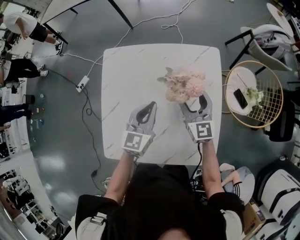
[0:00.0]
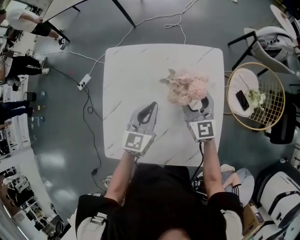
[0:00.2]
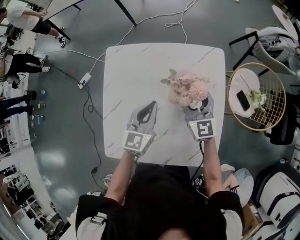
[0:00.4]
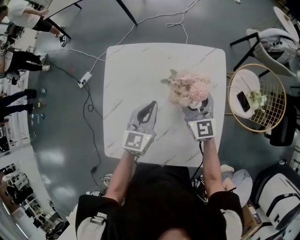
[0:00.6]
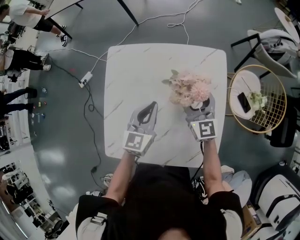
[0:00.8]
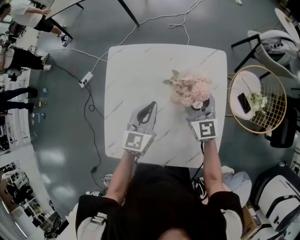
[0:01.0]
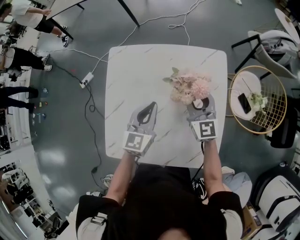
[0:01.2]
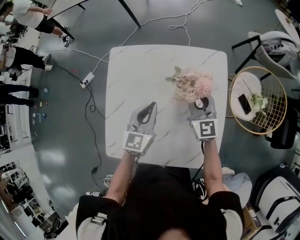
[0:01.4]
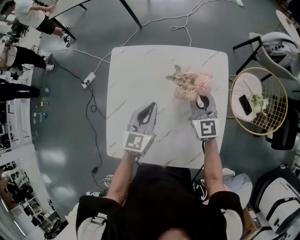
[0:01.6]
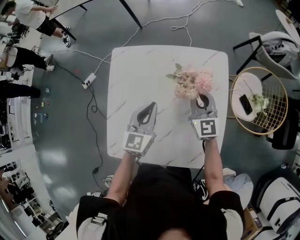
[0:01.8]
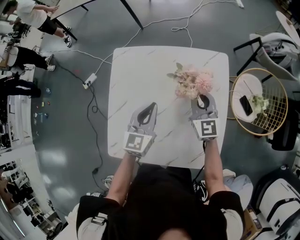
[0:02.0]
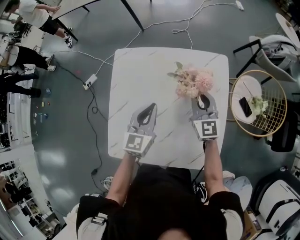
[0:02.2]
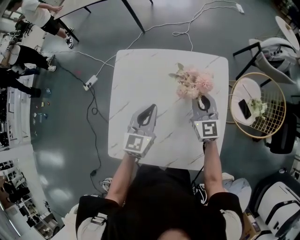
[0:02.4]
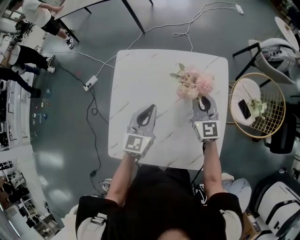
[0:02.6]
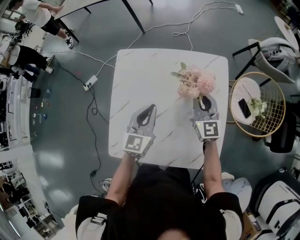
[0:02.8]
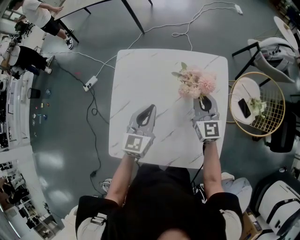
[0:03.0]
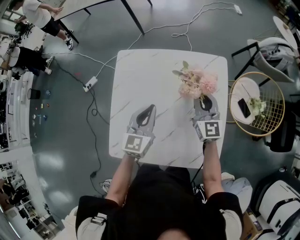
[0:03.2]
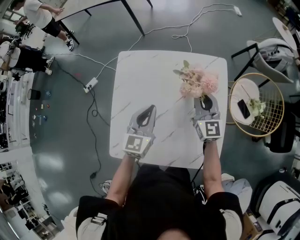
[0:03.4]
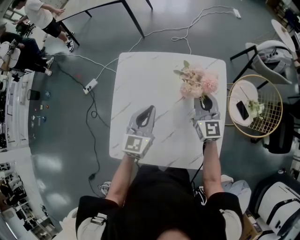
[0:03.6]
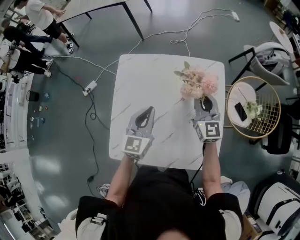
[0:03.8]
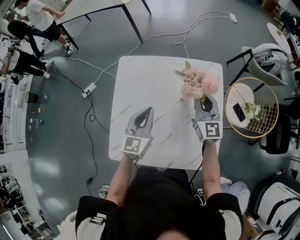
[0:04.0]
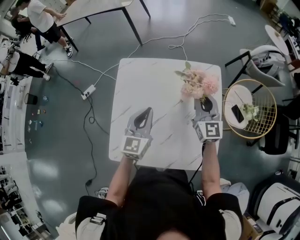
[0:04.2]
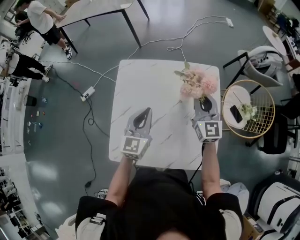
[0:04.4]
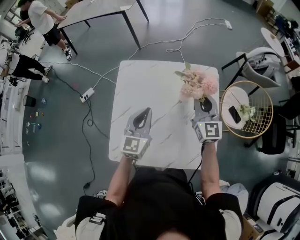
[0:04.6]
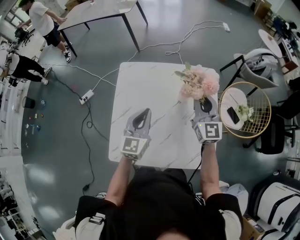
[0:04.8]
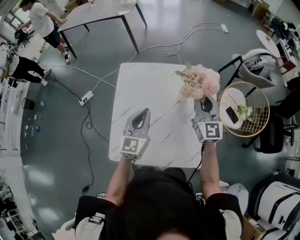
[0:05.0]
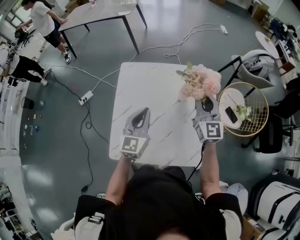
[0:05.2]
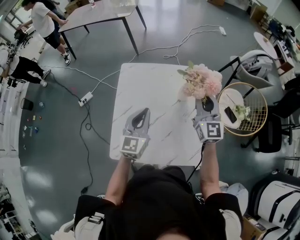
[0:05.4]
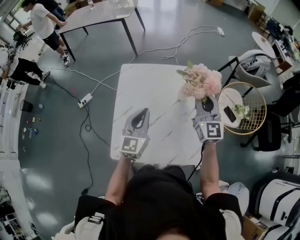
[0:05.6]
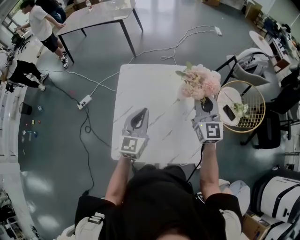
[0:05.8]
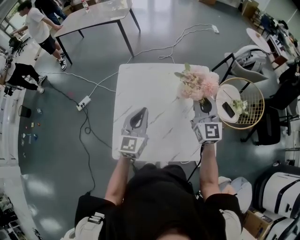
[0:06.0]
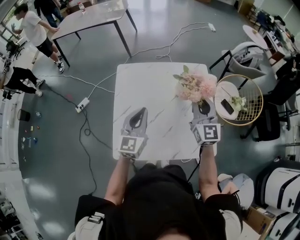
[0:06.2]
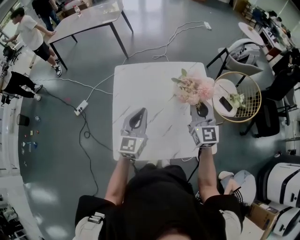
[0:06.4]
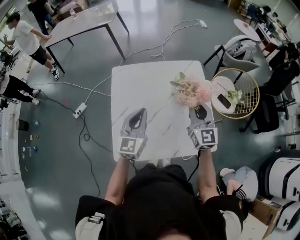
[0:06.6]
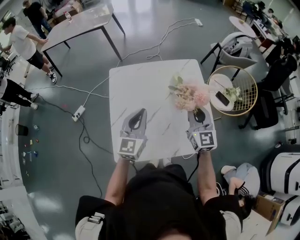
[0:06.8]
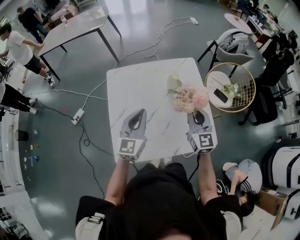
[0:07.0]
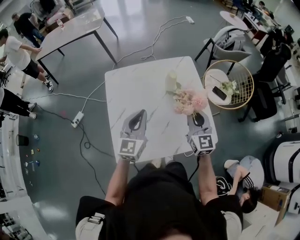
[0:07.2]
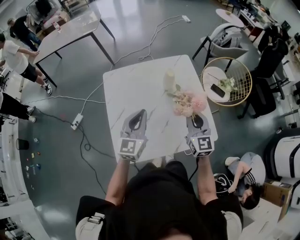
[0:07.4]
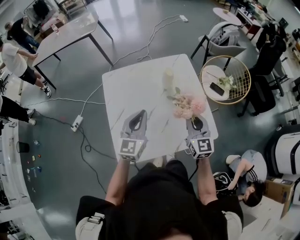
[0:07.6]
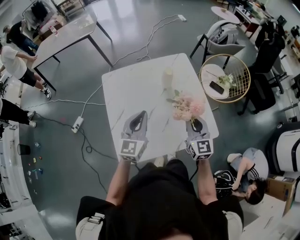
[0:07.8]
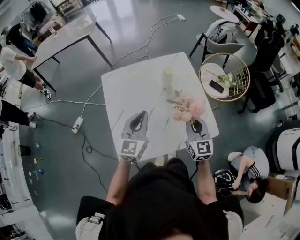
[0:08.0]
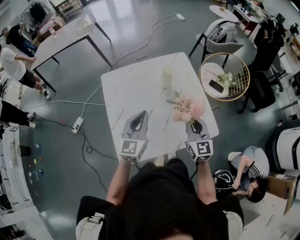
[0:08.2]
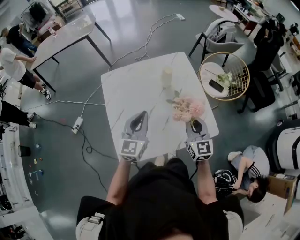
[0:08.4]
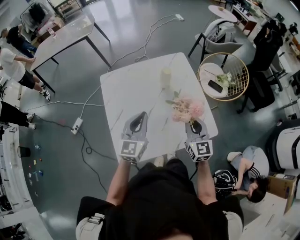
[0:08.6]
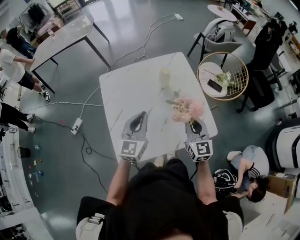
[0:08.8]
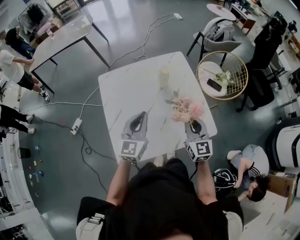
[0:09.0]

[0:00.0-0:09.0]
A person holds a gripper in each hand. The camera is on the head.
0:00.0 to 0:01.6: The right gripper closes up.
0:01.6 to 0:03.0: There are only small adjustments of the grippers.
0:03.0 to 0:04.4: The left gripper shifts by approximately 5 cm. Meanwhile the right gripper moves upward, roughly 10 cm.
0:04.4 to 0:06.0: The right gripper shifts some 10 cm backward and upward, while the left gripper moves backward, about 5 cm.
0:06.0 to 0:07.6: The right gripper is displaced backward and downward by about 15 cm.
0:07.6 to 0:09.0: The grippers move only a little.

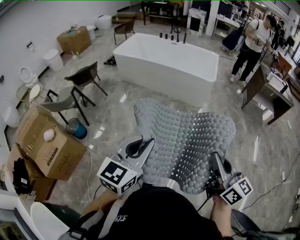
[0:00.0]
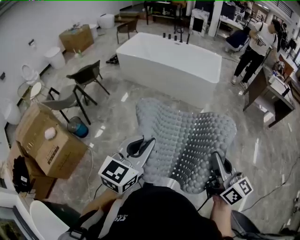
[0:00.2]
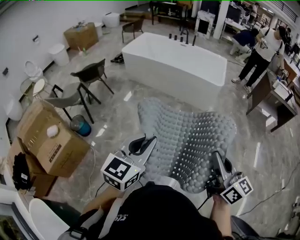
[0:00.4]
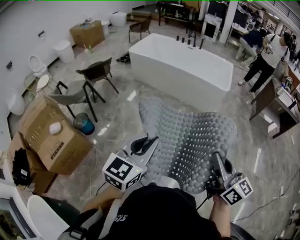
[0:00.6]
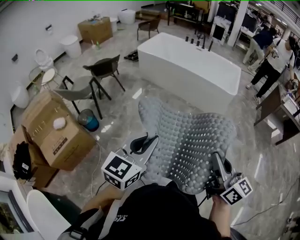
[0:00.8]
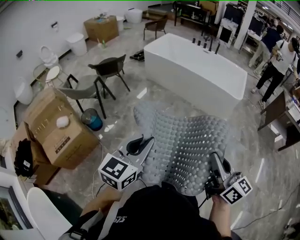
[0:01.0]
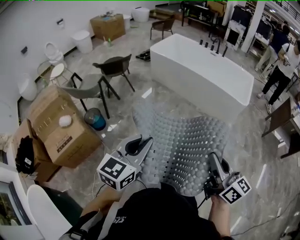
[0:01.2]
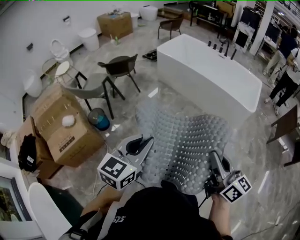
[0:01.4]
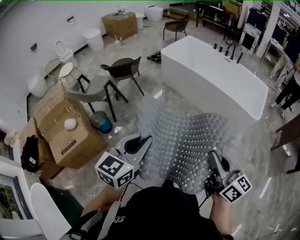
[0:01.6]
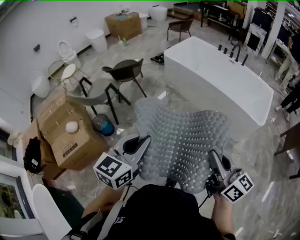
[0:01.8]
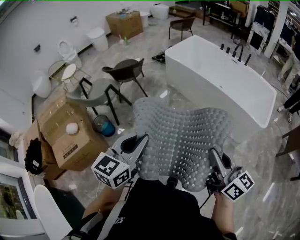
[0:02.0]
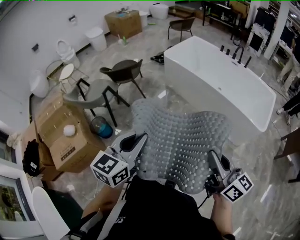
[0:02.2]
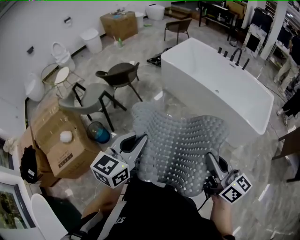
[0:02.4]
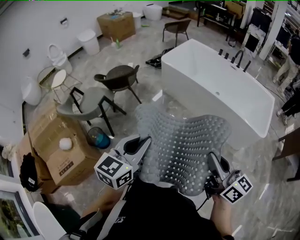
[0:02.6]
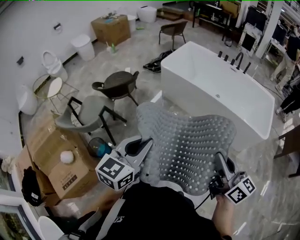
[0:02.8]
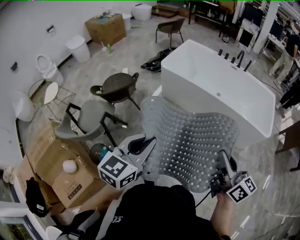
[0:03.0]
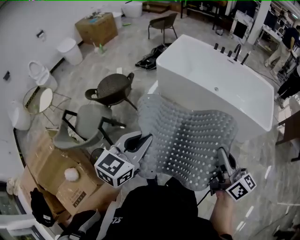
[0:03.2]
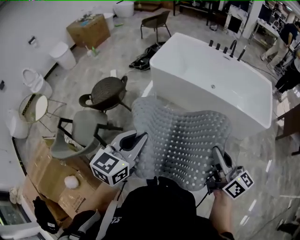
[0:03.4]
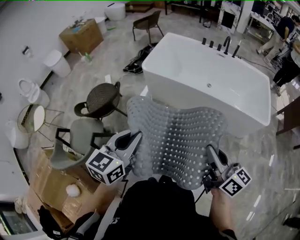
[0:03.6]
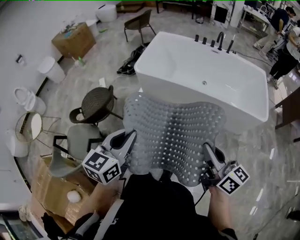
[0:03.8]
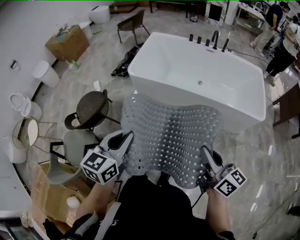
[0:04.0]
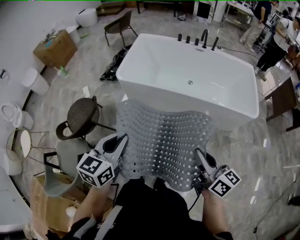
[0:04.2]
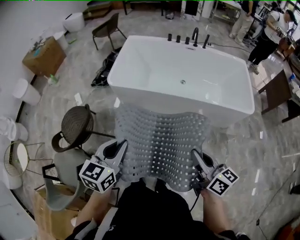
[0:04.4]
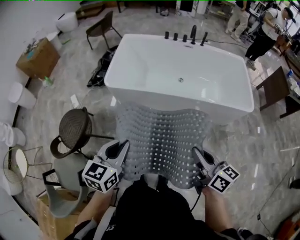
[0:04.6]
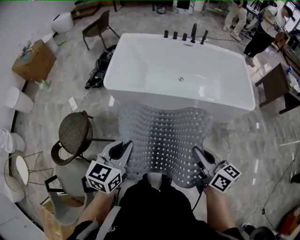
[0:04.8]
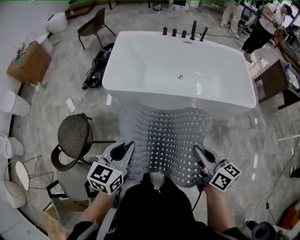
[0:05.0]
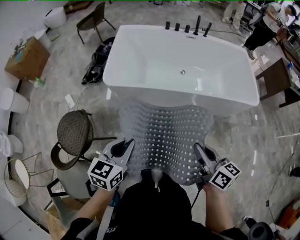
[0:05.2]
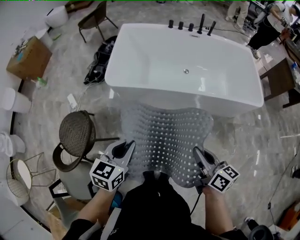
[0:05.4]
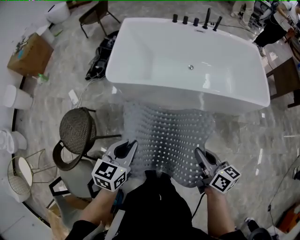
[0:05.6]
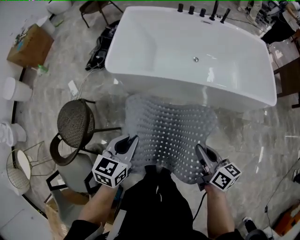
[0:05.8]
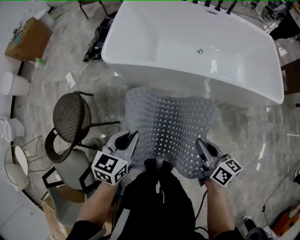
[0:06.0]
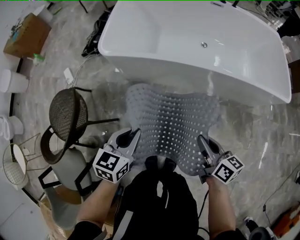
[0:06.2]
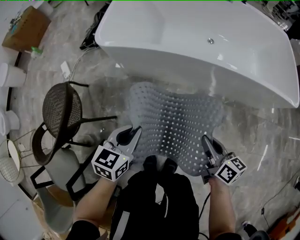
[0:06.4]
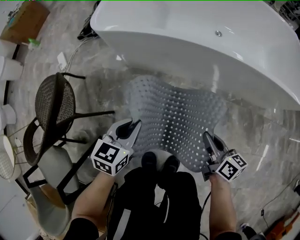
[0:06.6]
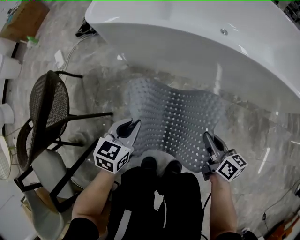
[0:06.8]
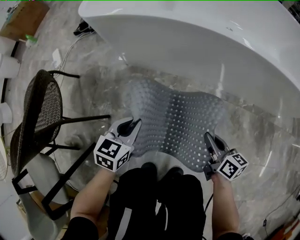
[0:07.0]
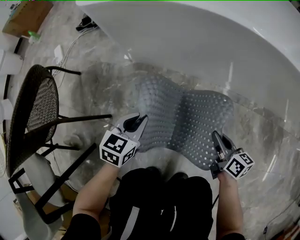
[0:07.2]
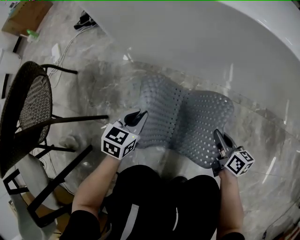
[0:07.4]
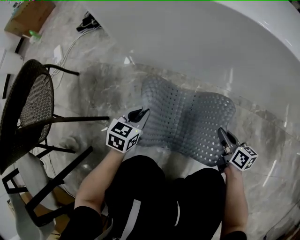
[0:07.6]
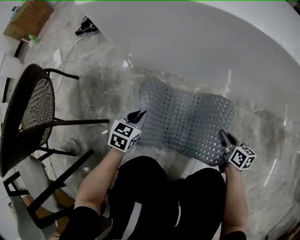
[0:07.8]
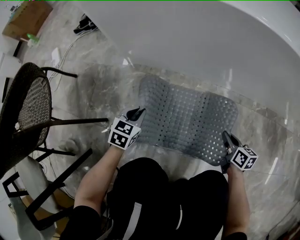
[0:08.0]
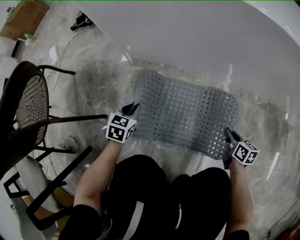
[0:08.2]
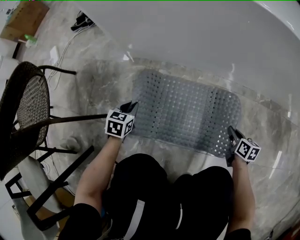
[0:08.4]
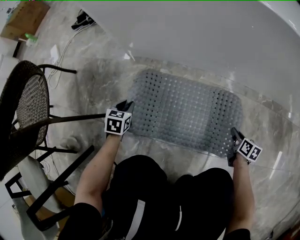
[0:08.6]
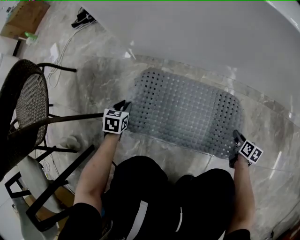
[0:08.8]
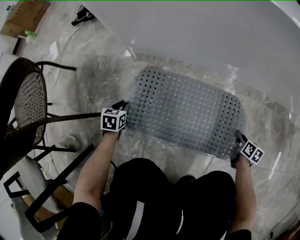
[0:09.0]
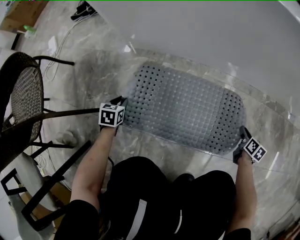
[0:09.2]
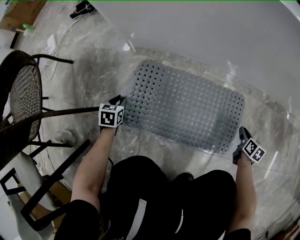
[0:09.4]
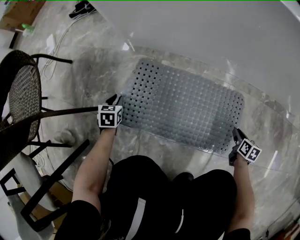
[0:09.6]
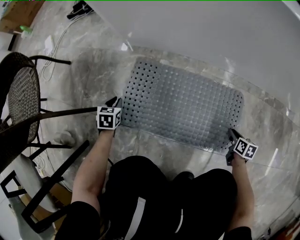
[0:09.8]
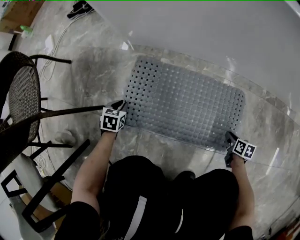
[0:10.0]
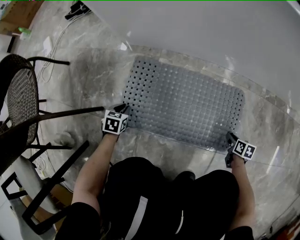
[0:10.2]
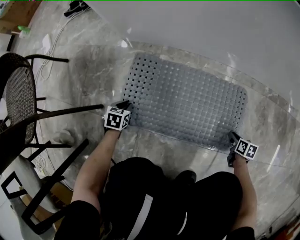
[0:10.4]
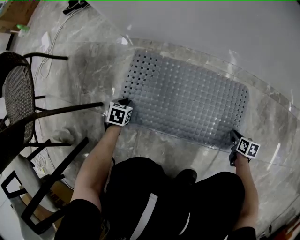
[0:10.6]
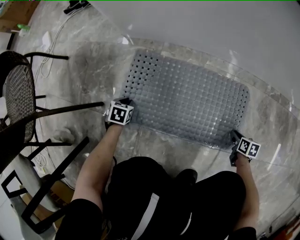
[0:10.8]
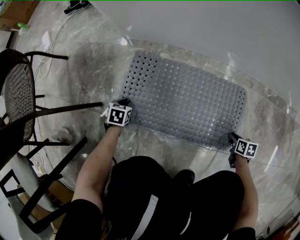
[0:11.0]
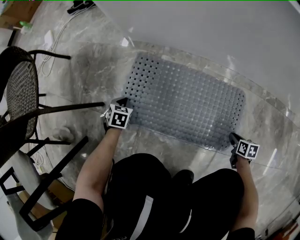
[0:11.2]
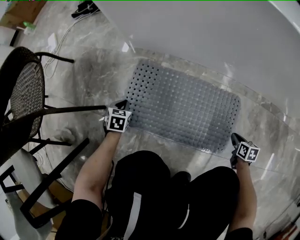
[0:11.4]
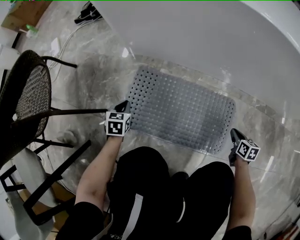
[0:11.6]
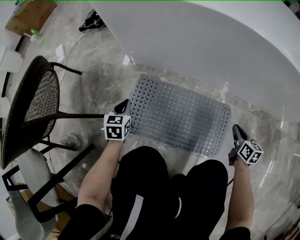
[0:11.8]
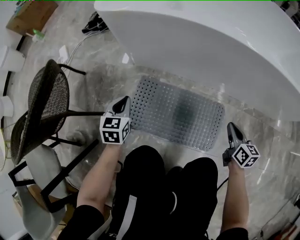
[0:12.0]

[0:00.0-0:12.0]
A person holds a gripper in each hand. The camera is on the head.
0:00.0 to 0:01.6: The grippers both shift forward and to the left by roughly 30 cm. The right gripper swivels about 20 degrees. The left gripper turns by roughly 20 degrees.
0:01.6 to 0:03.0: The two grippers go about 35 cm forward and to the left.
0:03.0 to 0:04.4: The two grippers go about 25 cm forward.
0:04.4 to 0:06.0: The grippers both shift downward and forward by approximately 25 cm.
0:06.0 to 0:07.6: The grippers both shift downward by roughly 50 cm.
0:07.6 to 0:09.0: The left gripper moves downward and to the left, some 20 cm, and changes its angle by roughly 30 degrees, while the right gripper shifts some 20 cm downward and to the right, and changes its angle by approximately 30 degrees.
0:09.0 to 0:10.4: The left gripper moves downward, approximately 5 cm. The right gripper moves downward and backward, roughly 10 cm.
0:10.4 to 0:12.0: The two grippers go roughly 35 cm upward. The right gripper tips its fingers upward by roughly 30 degrees, while the left gripper changes its angle by some 30 degrees.

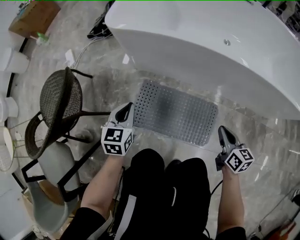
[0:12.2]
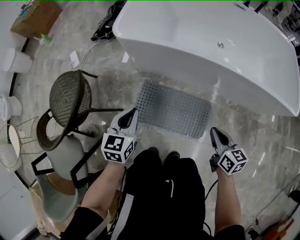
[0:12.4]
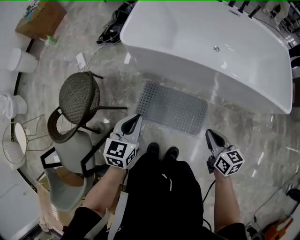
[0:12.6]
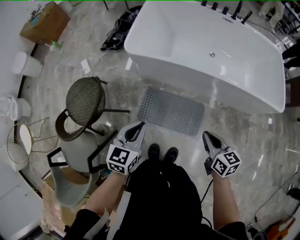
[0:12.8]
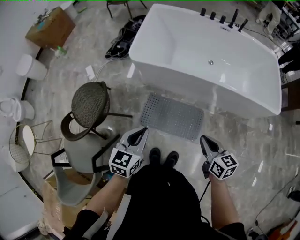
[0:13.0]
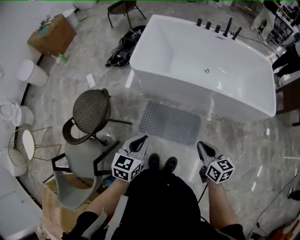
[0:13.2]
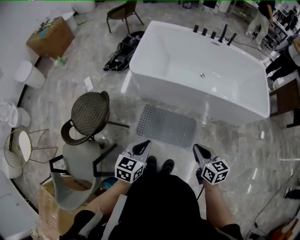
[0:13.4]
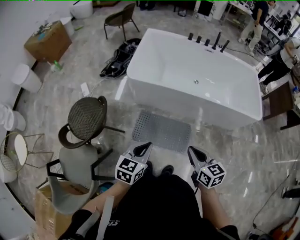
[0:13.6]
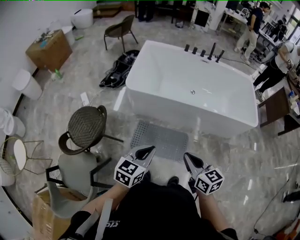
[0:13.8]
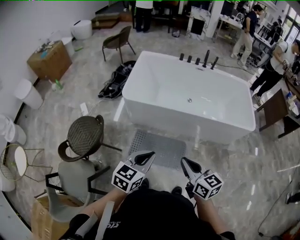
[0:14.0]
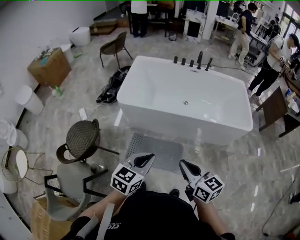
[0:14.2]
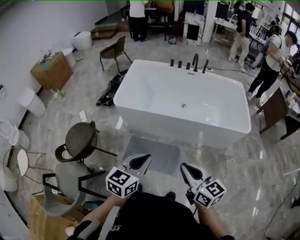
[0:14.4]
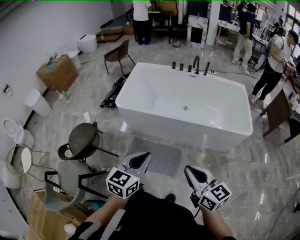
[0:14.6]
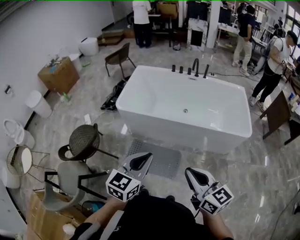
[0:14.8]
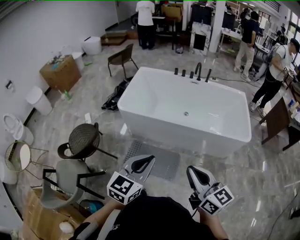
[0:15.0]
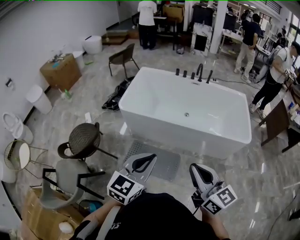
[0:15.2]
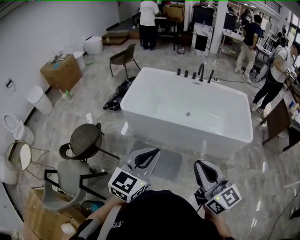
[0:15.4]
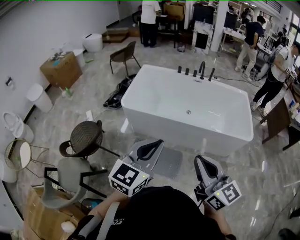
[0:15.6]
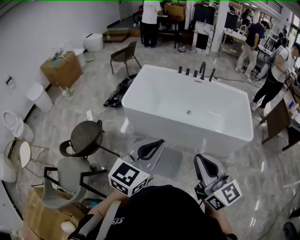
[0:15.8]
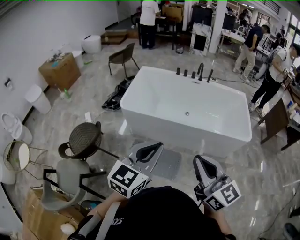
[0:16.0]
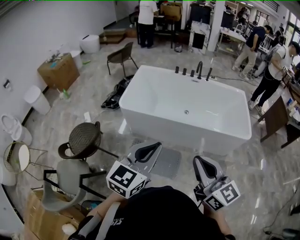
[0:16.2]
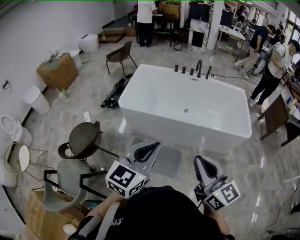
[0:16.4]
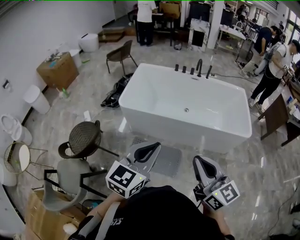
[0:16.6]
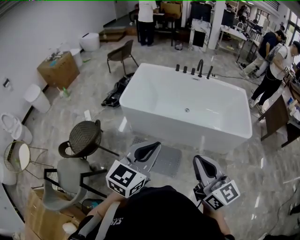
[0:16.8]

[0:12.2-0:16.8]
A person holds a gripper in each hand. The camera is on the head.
0:12.2 to 0:13.8: The left gripper is displaced upward and backward by roughly 50 cm, and changes its angle by about 30 degrees. Meanwhile the right gripper moves upward, roughly 50 cm.
0:13.8 to 0:15.2: Both grippers move to the right and upward, about 25 cm. The right gripper swivels roughly 20 degrees.
0:15.2 to 0:16.8: The grippers move only a little.
